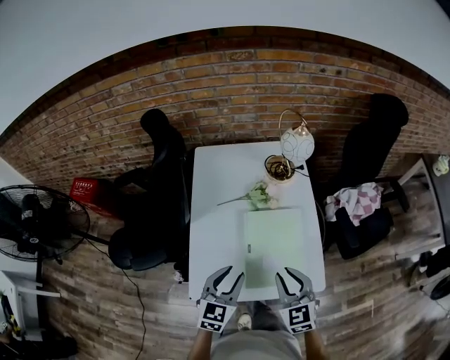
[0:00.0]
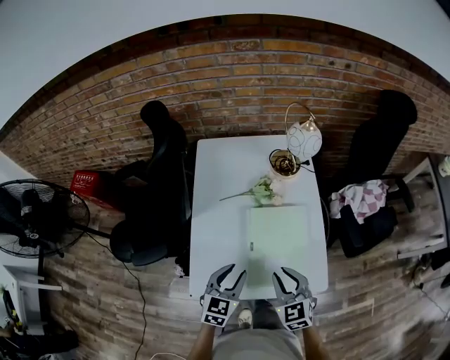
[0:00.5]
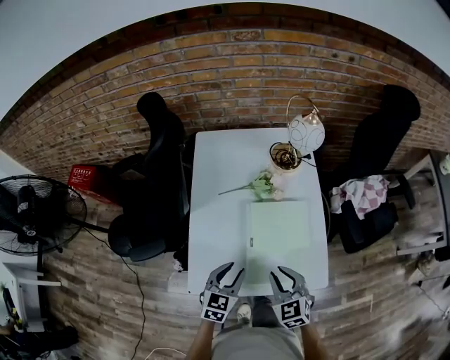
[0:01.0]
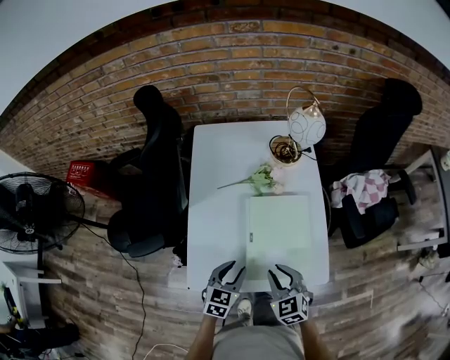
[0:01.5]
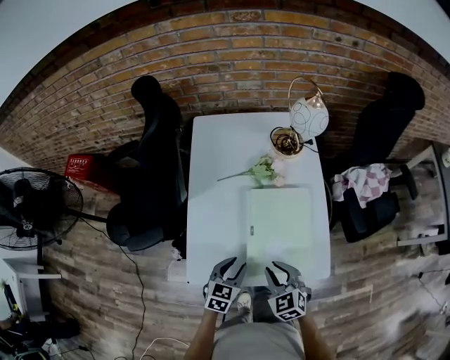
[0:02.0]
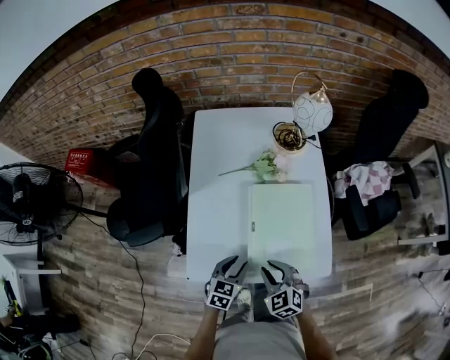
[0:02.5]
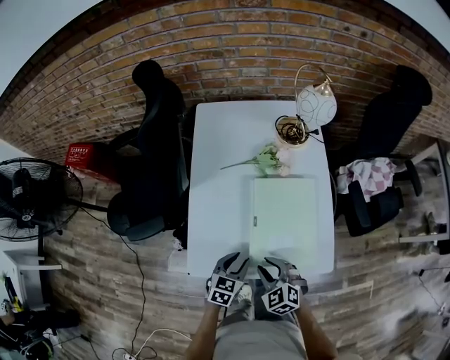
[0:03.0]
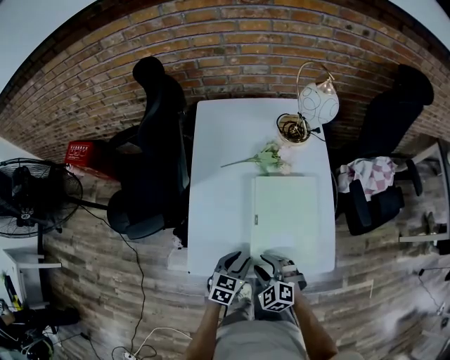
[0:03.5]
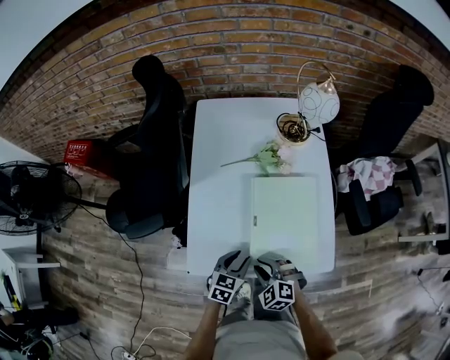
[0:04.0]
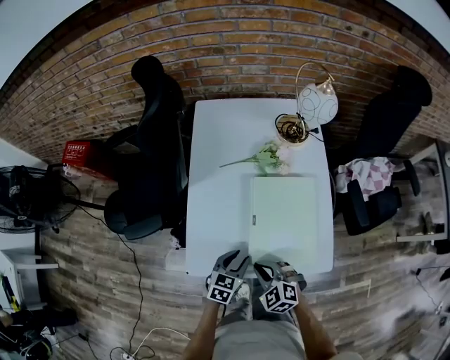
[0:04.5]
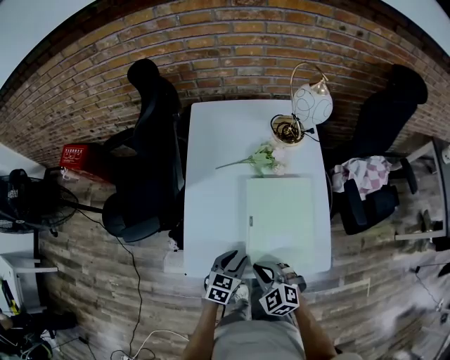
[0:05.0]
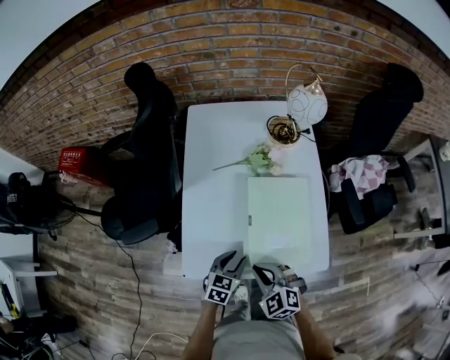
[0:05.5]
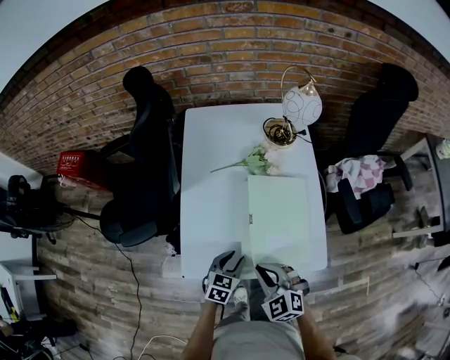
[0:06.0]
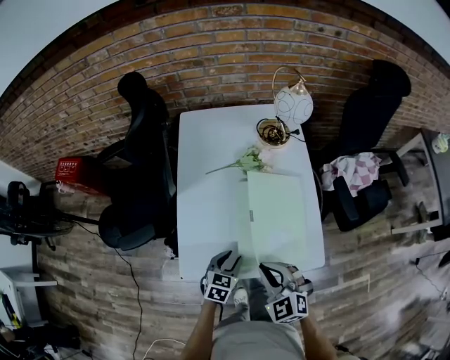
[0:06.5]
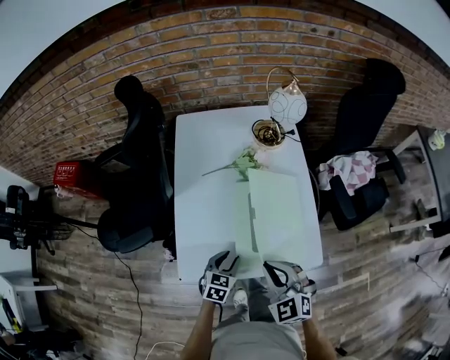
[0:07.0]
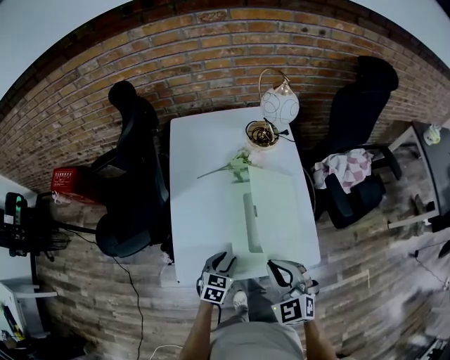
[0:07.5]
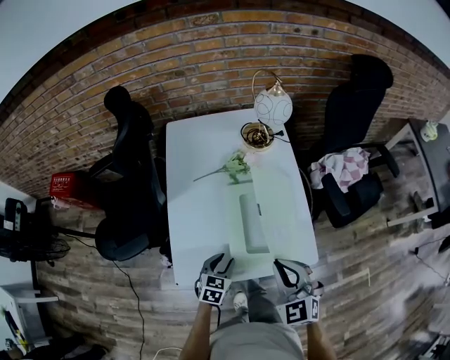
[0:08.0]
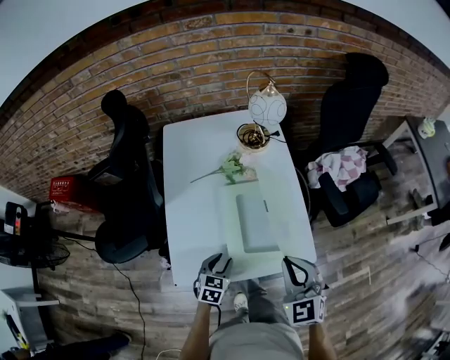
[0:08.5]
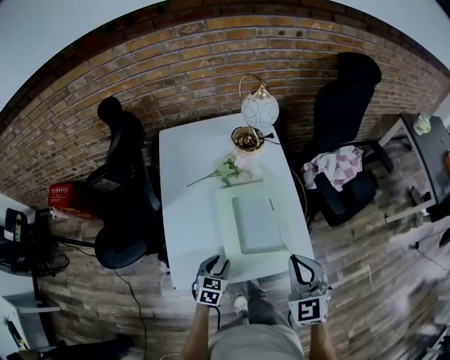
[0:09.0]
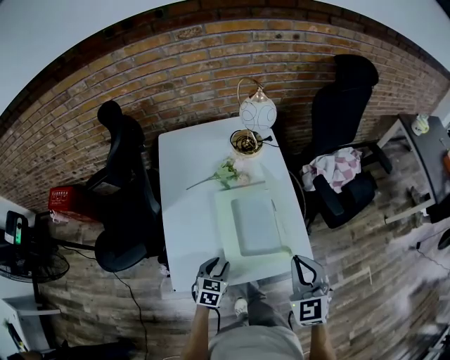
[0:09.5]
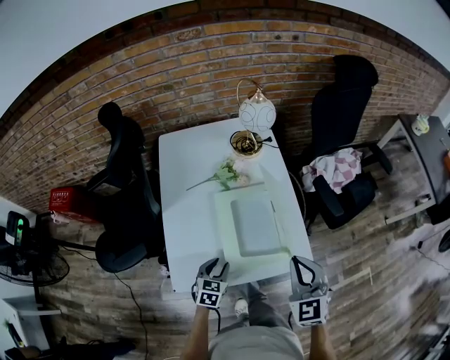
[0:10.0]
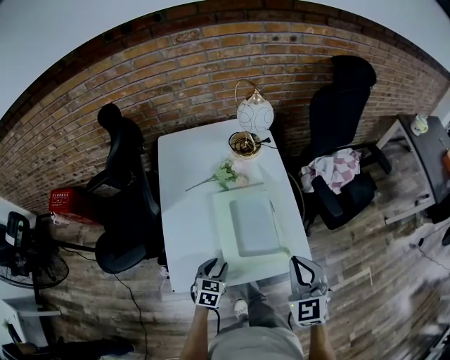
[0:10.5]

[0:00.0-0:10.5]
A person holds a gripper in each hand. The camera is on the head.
0:00.0 to 0:02.0: The grippers both shift downward by roughly 15 cm.
0:02.0 to 0:04.0: The right gripper heads downward and to the left, covering about 10 cm, and rotates about 30 degrees.
0:04.0 to 0:06.5: The right gripper goes approximately 15 cm upward, turns by some 20 degrees, and closes its fingers.
0:06.5 to 0:08.5: The right gripper moves to the right and upward, about 10 cm.
0:08.5 to 0:10.5: The grippers move only a little.

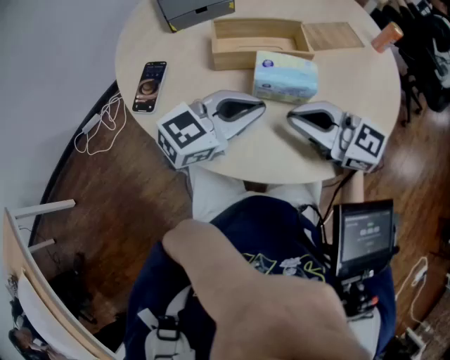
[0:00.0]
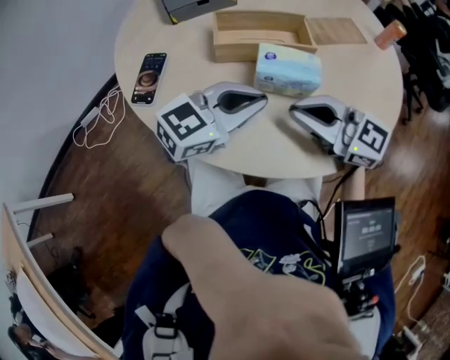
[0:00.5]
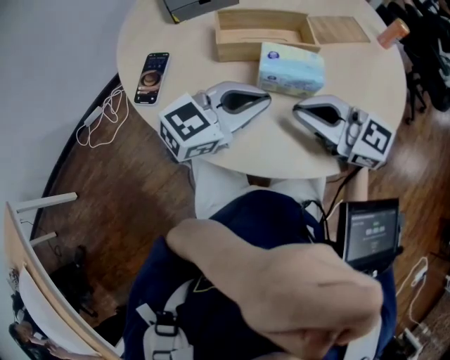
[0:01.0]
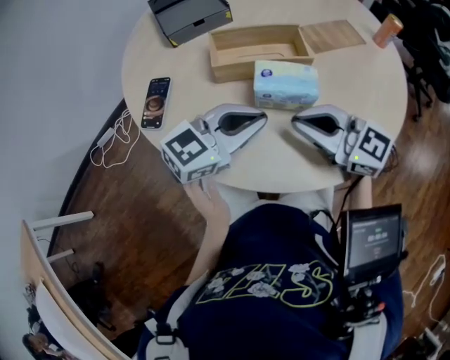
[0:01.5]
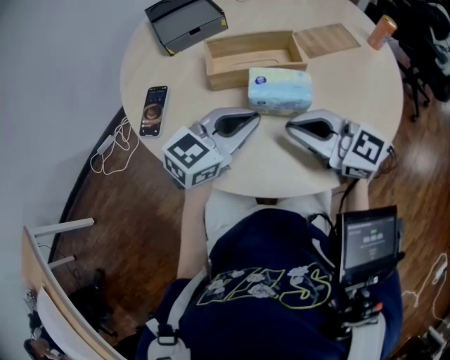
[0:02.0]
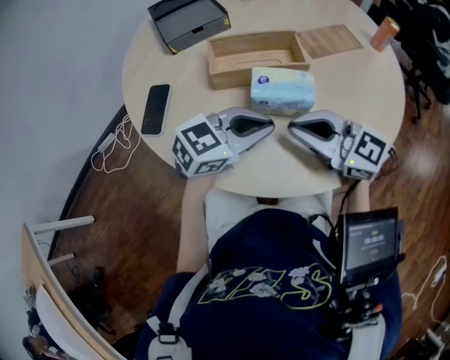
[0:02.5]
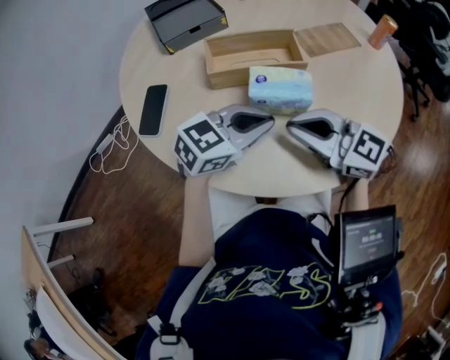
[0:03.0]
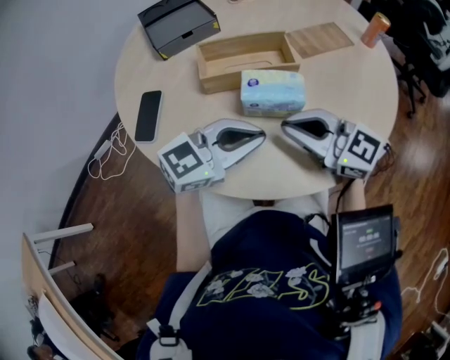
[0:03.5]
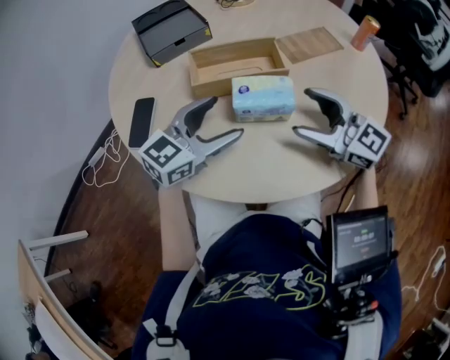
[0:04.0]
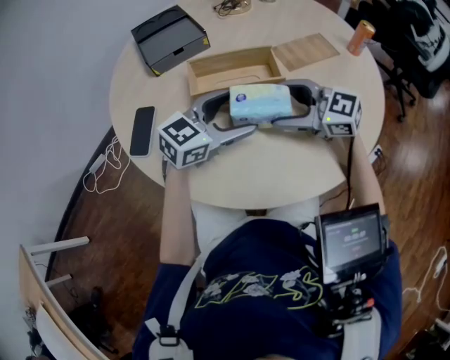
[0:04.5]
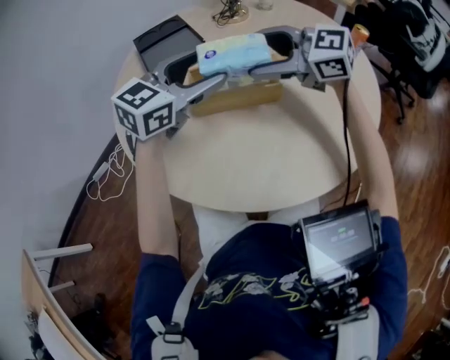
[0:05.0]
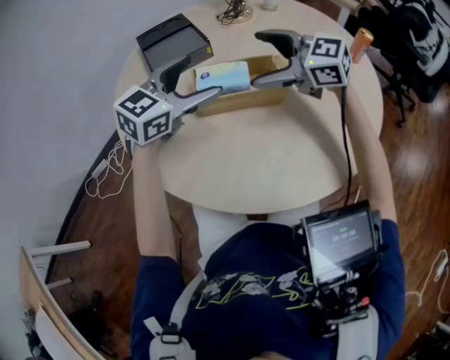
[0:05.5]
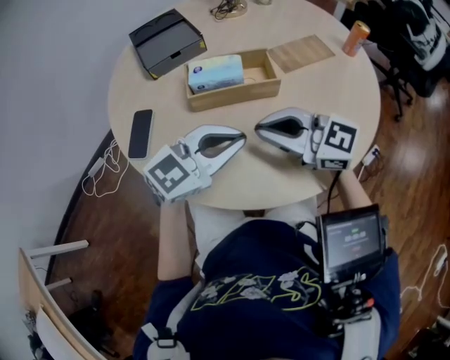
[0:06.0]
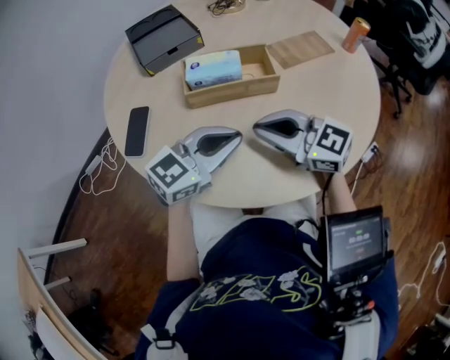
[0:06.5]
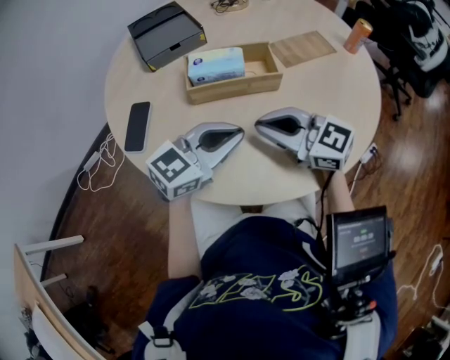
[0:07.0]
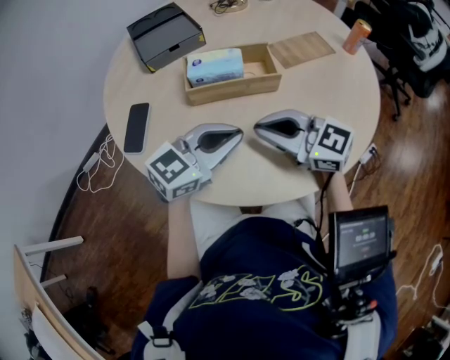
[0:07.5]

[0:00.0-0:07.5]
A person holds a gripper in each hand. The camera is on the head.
0:00.0 to 0:02.0: There are only small adjustments of the grippers.
0:02.0 to 0:04.0: The left gripper opens its fingers, while the right gripper shifts by approximately 10 cm, and opens.
0:04.0 to 0:05.5: The left gripper changes place by some 15 cm. Meanwhile the right gripper changes place by approximately 20 cm.
0:05.5 to 0:07.5: The left gripper shifts by about 15 cm, and closes up. Meanwhile the right gripper changes place by about 20 cm, and closes.

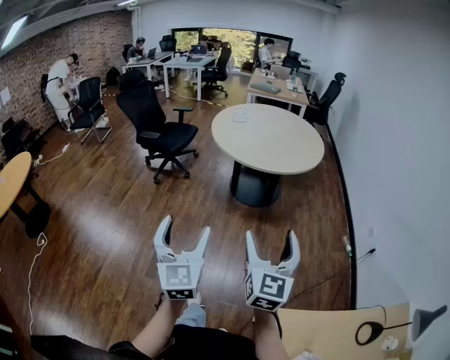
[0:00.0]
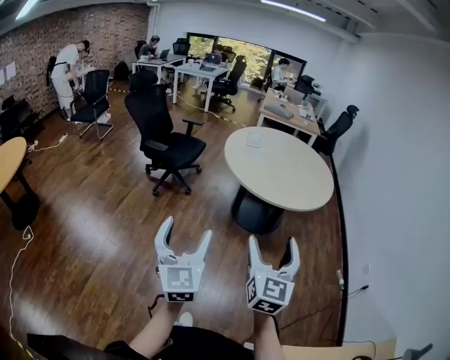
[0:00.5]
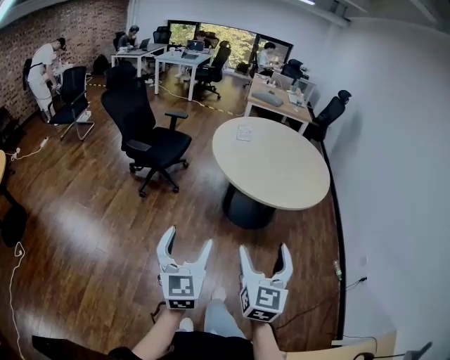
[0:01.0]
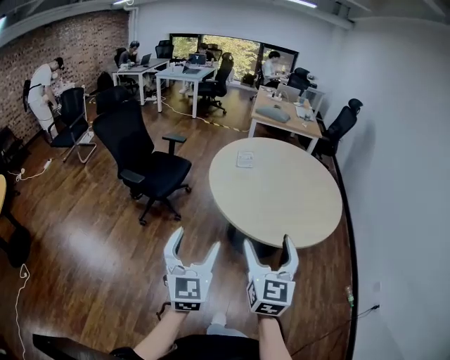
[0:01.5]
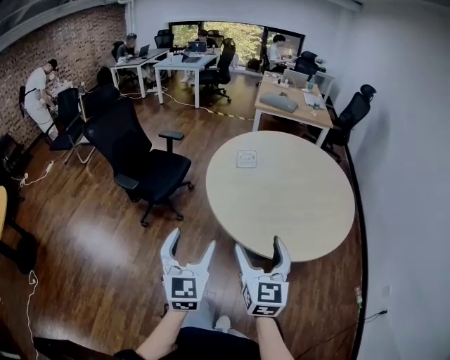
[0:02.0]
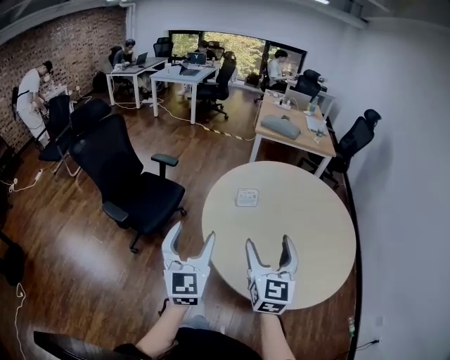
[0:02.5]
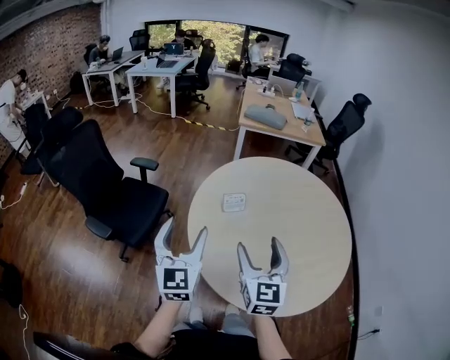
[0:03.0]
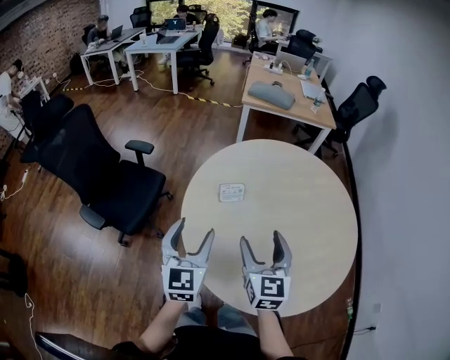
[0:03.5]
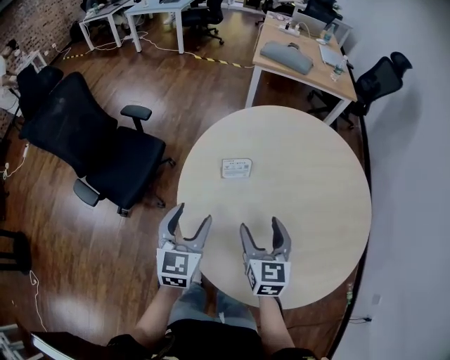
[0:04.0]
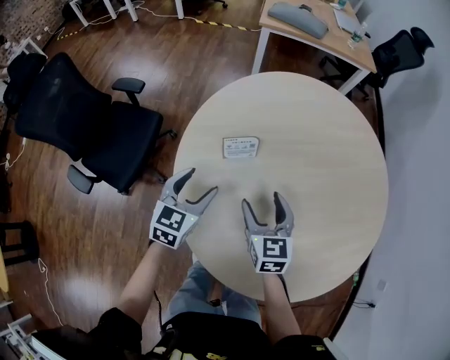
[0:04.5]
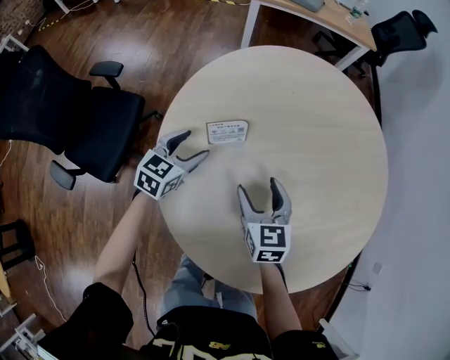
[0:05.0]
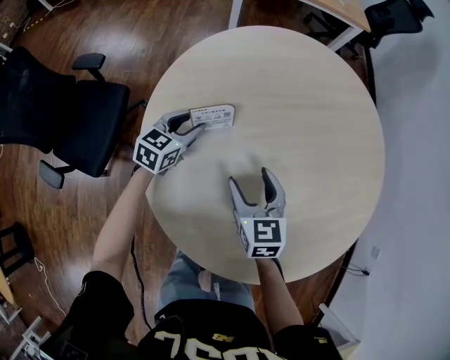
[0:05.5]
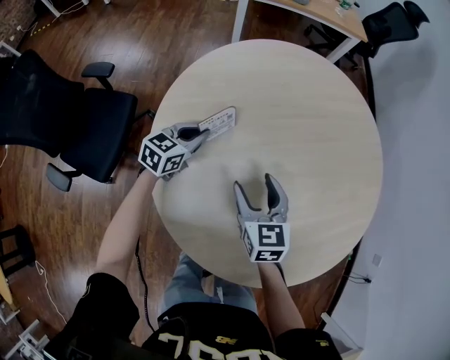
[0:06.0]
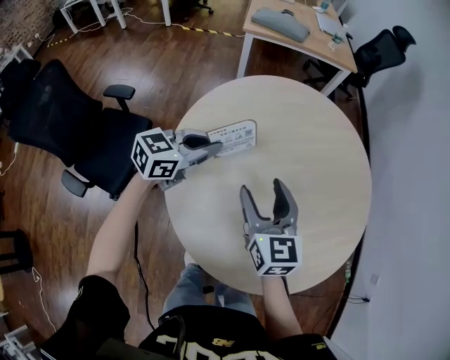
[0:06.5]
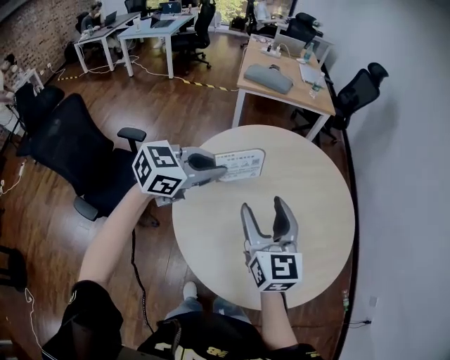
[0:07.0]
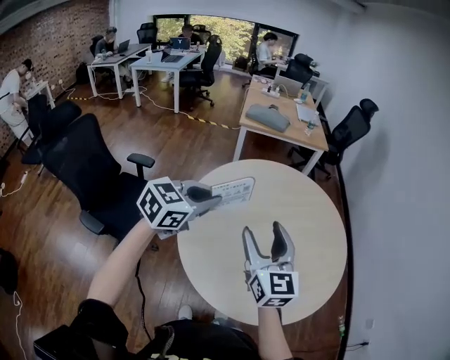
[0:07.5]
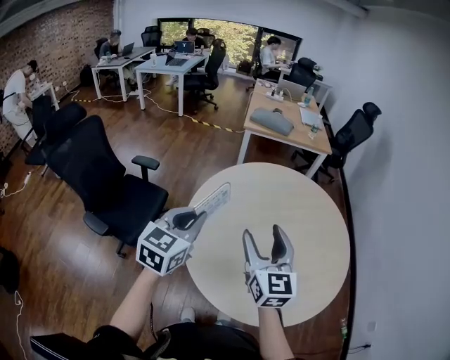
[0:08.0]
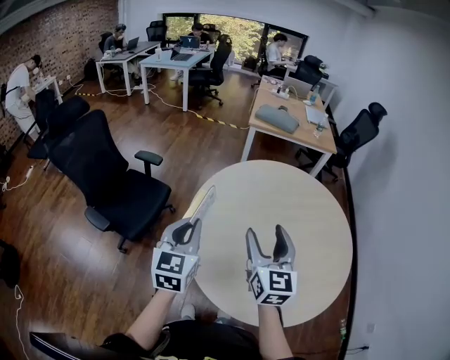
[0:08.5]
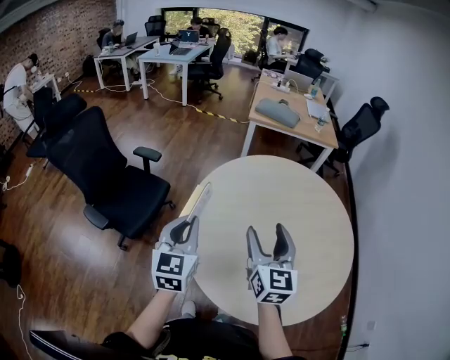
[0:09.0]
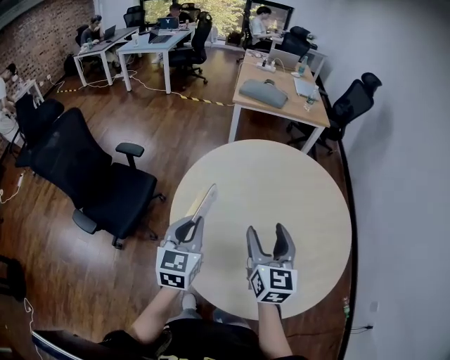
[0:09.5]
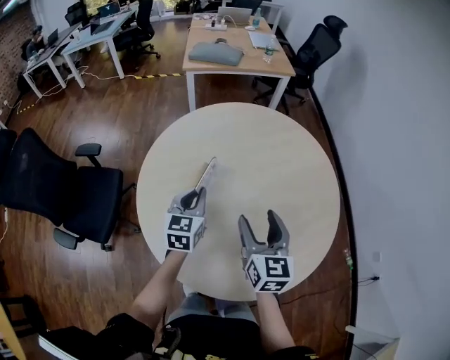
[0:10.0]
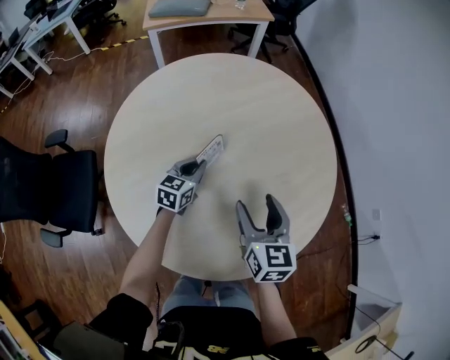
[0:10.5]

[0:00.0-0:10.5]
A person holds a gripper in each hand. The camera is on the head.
0:00.0 to 0:02.0: The two grippers travel together, forward, about 60 cm.
0:02.0 to 0:04.0: The pair of grippers is taken forward, approximately 40 cm.
0:04.0 to 0:06.5: The right gripper travels downward and back again, some 15 cm each way. The left gripper goes downward and returns, some 20 cm each way, turns by about 50 degrees, and closes.
0:06.5 to 0:08.5: The left gripper ends up some 25 cm from where it was, and turns by some 50 degrees. Meanwhile the right gripper is displaced upward by some 15 cm.
0:08.5 to 0:10.5: The left gripper shifts by some 50 cm, and changes its angle by some 50 degrees; the right gripper ends up roughly 30 cm from where it was, and rotates roughly 30 degrees.
